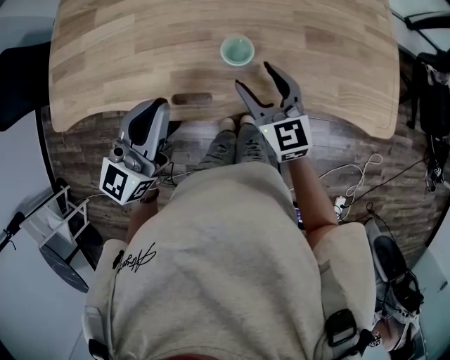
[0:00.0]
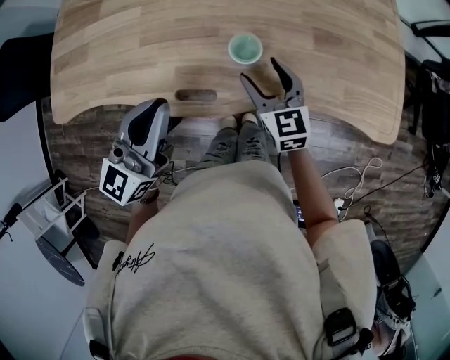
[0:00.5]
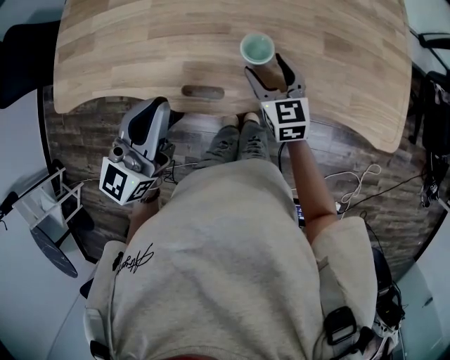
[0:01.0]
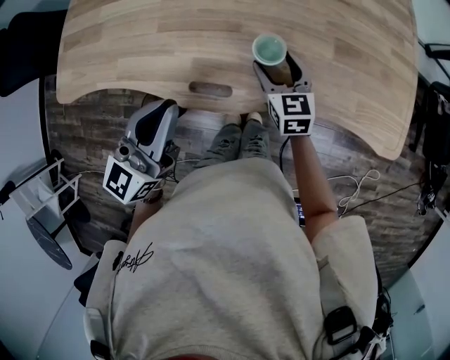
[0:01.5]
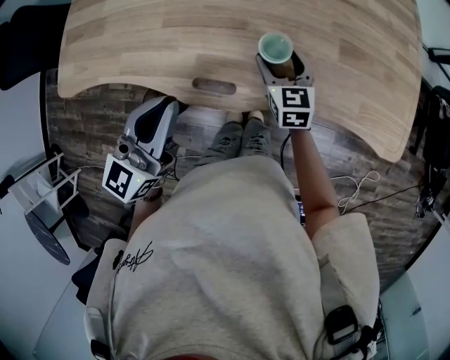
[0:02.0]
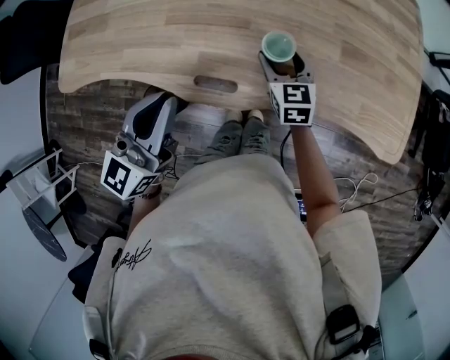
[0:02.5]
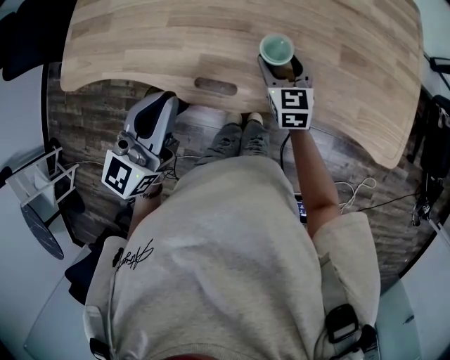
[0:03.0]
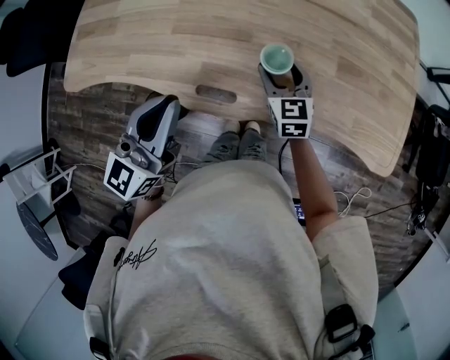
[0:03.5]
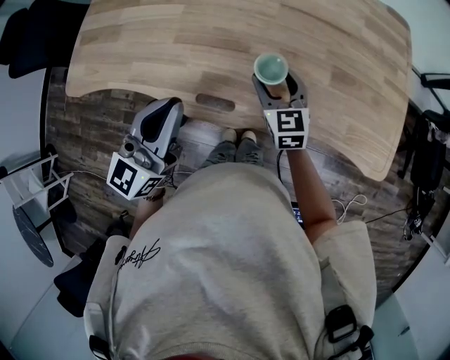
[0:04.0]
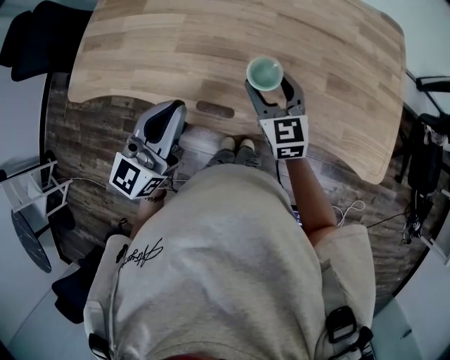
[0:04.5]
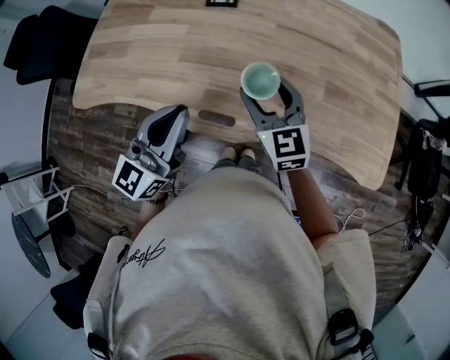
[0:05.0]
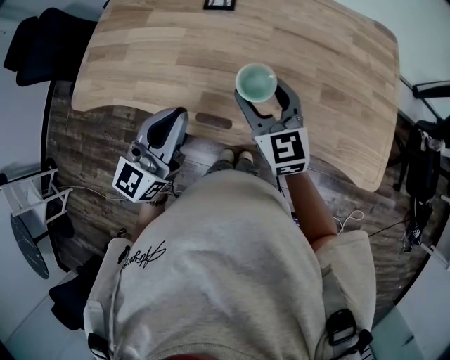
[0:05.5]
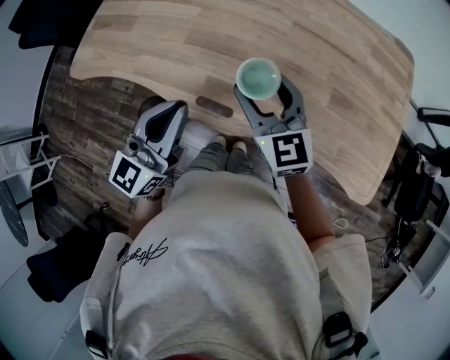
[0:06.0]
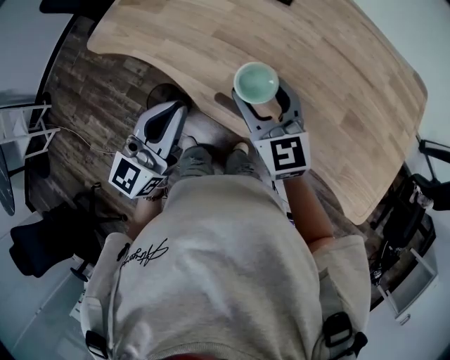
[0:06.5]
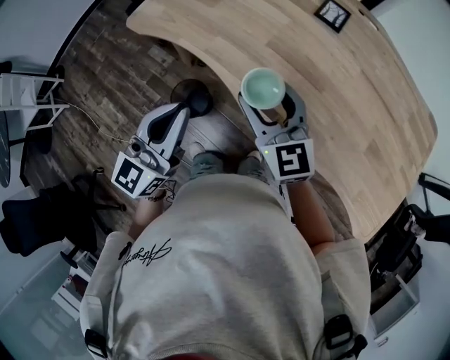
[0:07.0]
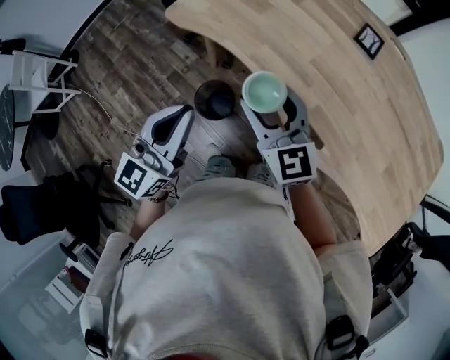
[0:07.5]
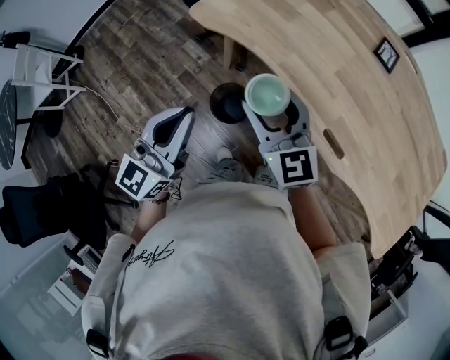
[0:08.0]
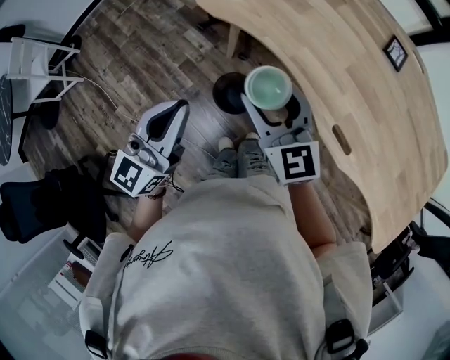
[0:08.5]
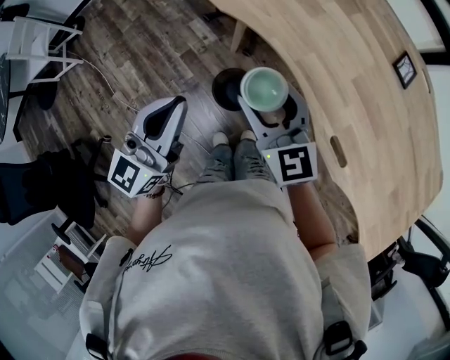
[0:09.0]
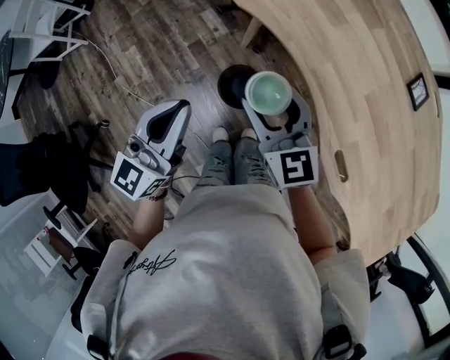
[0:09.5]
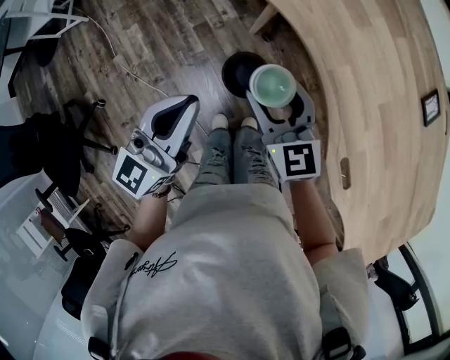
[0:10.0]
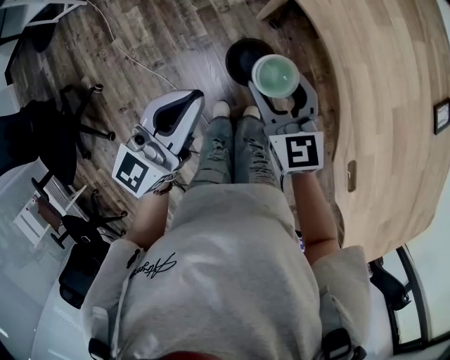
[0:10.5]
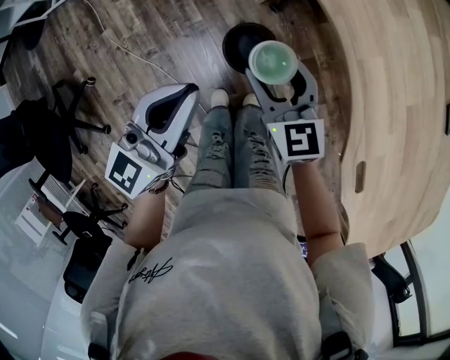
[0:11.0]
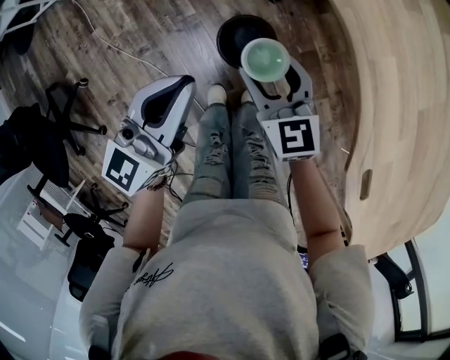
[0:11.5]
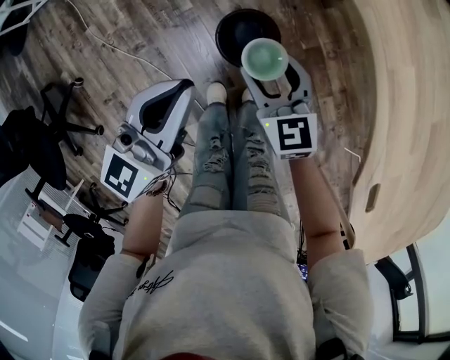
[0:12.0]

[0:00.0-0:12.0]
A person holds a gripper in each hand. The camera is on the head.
0:00.0 to 0:02.0: The right gripper goes approximately 10 cm downward and forward, while the left gripper moves about 5 cm.
0:02.0 to 0:04.0: The right gripper shifts about 5 cm upward.
0:04.0 to 0:06.0: The right gripper shifts approximately 15 cm upward and to the left, and swivels roughly 20 degrees.
0:06.0 to 0:08.0: The grippers both shift to the left by about 40 cm. The right gripper swivels about 20 degrees; the left gripper rotates some 20 degrees.
0:08.0 to 0:10.0: The left gripper shifts approximately 10 cm downward; the right gripper is displaced downward and to the left by some 15 cm.
0:10.0 to 0:12.0: The grippers both shift downward by some 20 cm.

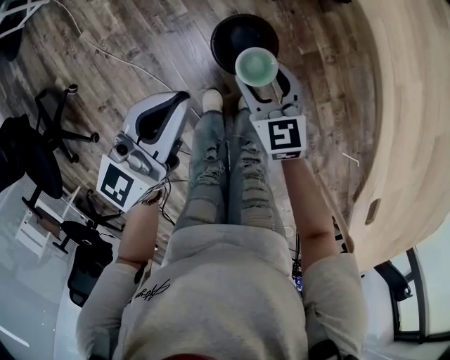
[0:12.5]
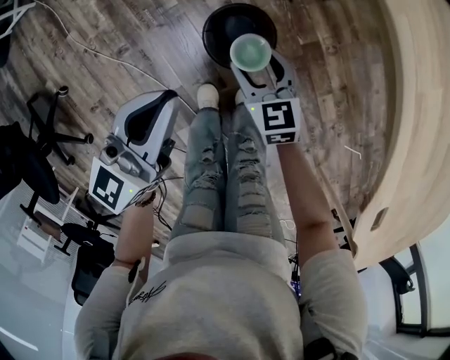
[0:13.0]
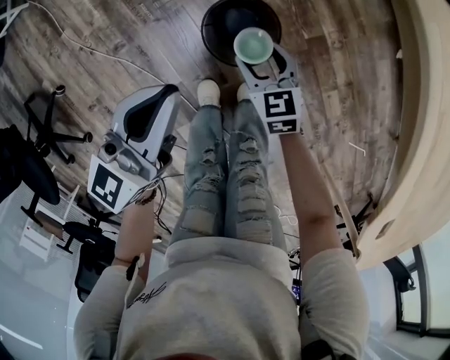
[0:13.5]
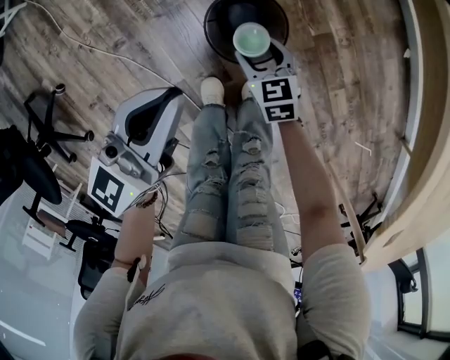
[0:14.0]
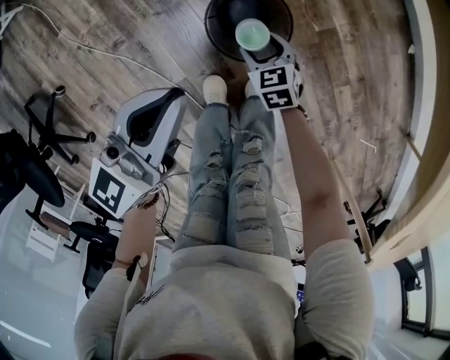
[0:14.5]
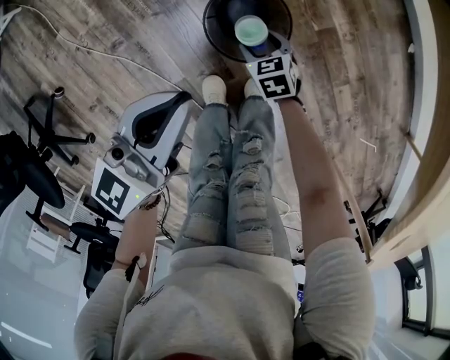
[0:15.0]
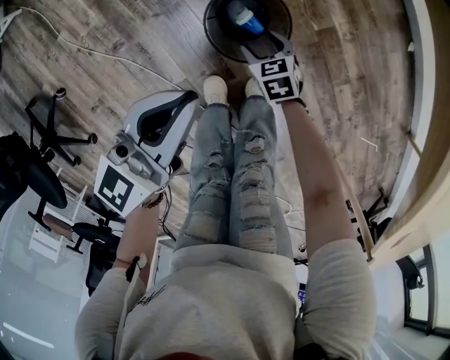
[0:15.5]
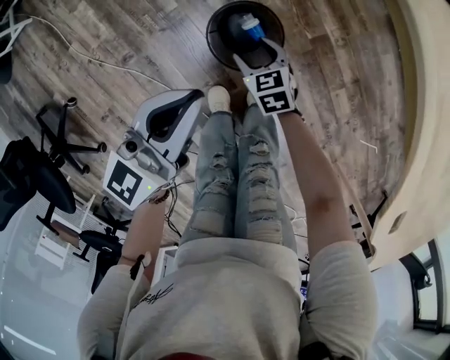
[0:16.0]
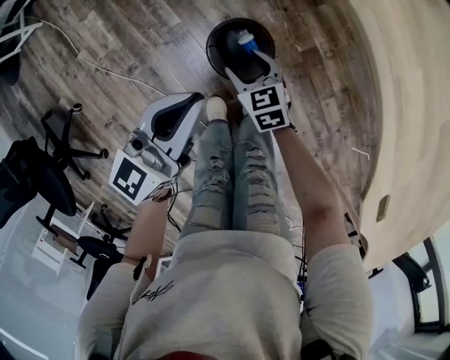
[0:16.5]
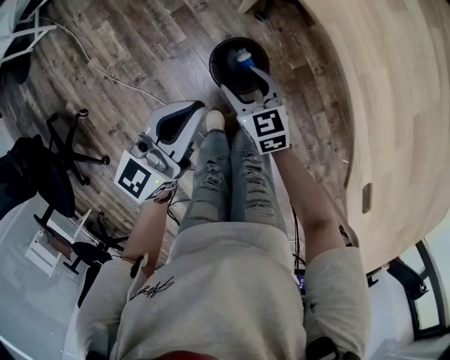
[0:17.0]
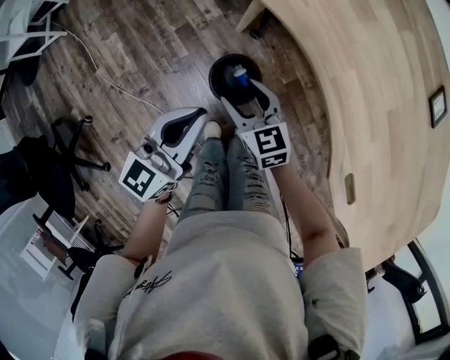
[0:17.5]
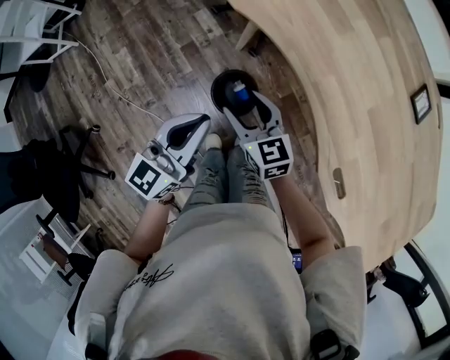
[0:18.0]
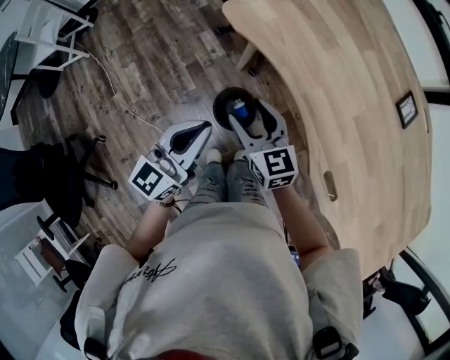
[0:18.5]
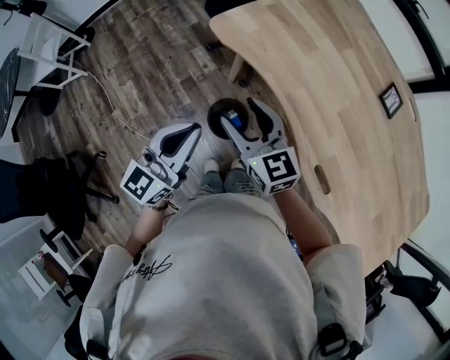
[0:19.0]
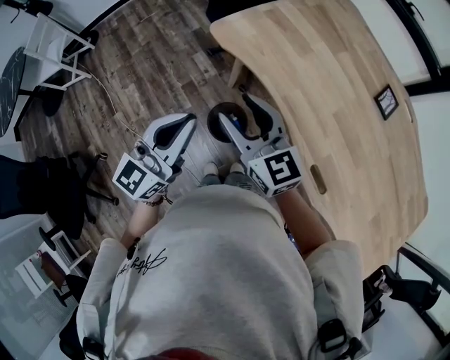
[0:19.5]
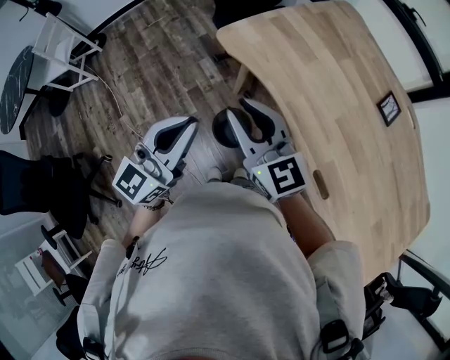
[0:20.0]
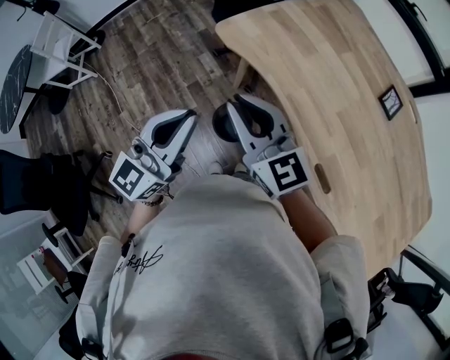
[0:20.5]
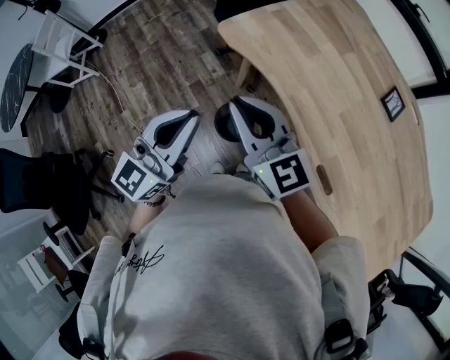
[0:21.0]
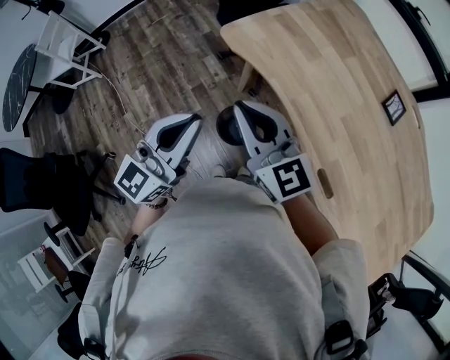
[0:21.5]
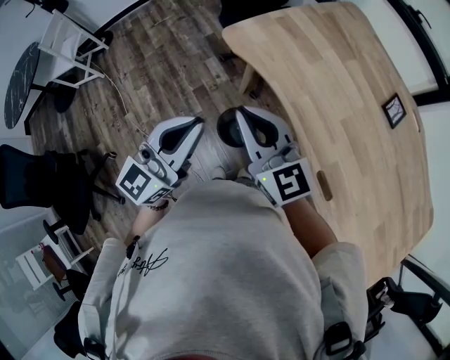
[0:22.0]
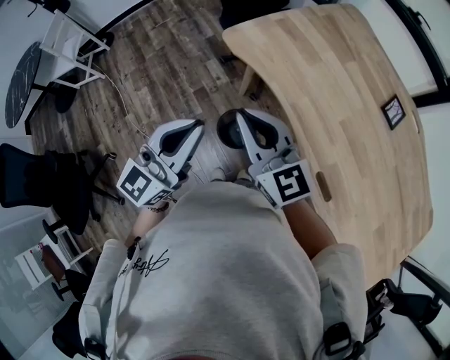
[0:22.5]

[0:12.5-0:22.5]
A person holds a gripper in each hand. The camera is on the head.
0:12.5 to 0:14.5: The right gripper shifts some 25 cm downward, and turns by about 20 degrees; the left gripper moves downward, roughly 10 cm.
0:14.5 to 0:16.5: The left gripper goes approximately 5 cm upward. Meanwhile the right gripper heads upward, covering about 15 cm.
0:16.5 to 0:18.5: The left gripper travels upward by about 20 cm. Meanwhile the right gripper travels upward by some 40 cm, and rotates approximately 30 degrees.
0:18.5 to 0:20.5: Both grippers travel together upward, approximately 15 cm. The right gripper closes its fingers.
0:20.5 to 0:22.5: There are only small adjustments of the grippers.

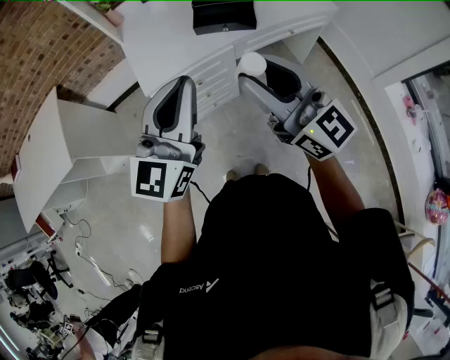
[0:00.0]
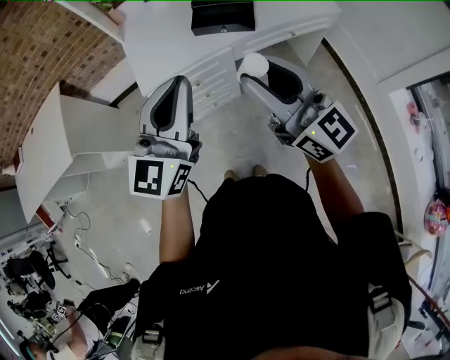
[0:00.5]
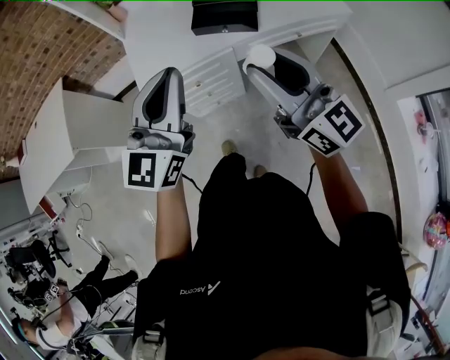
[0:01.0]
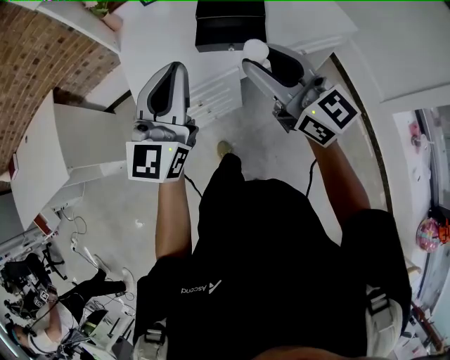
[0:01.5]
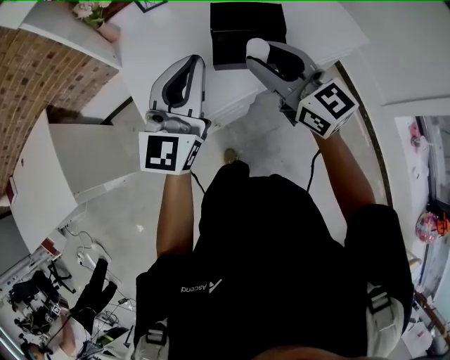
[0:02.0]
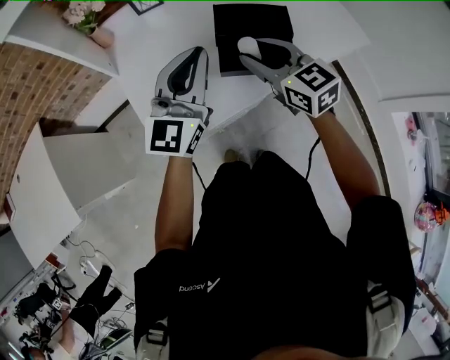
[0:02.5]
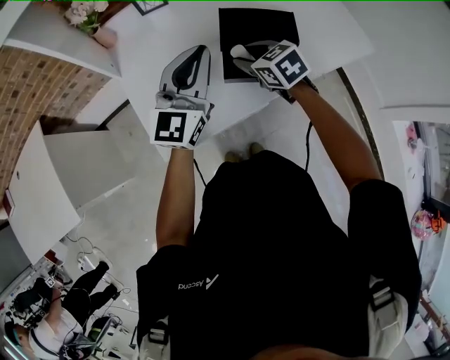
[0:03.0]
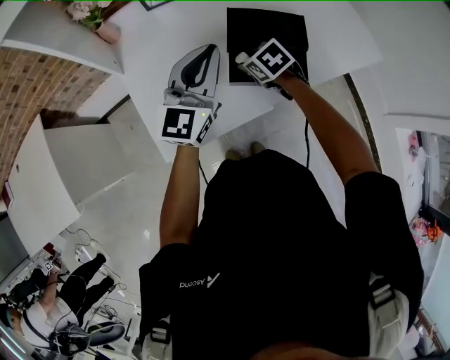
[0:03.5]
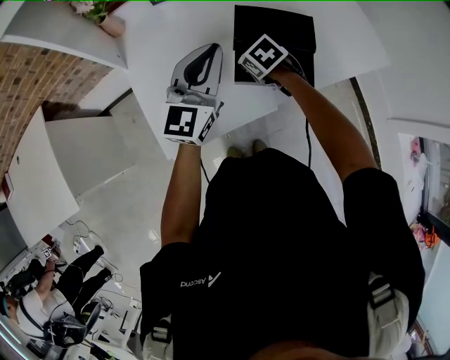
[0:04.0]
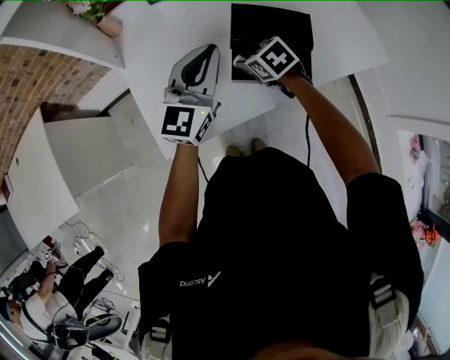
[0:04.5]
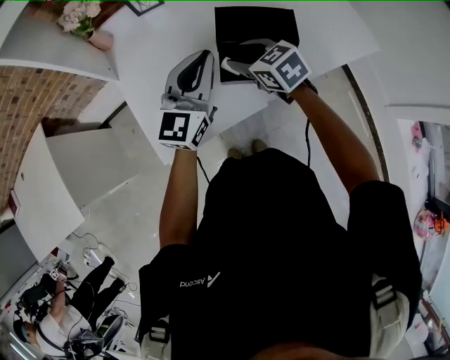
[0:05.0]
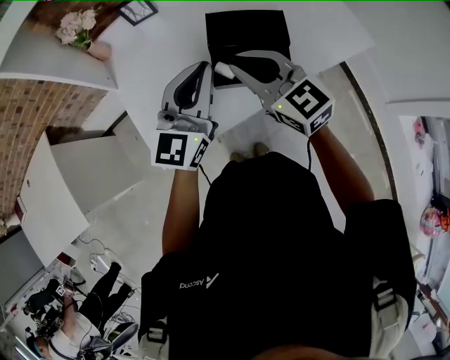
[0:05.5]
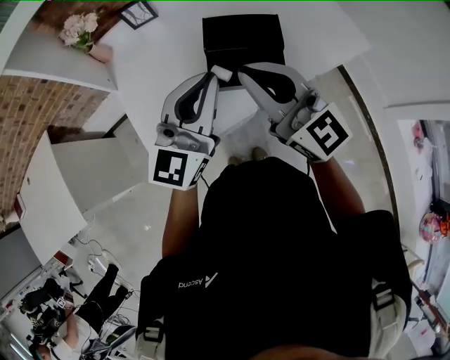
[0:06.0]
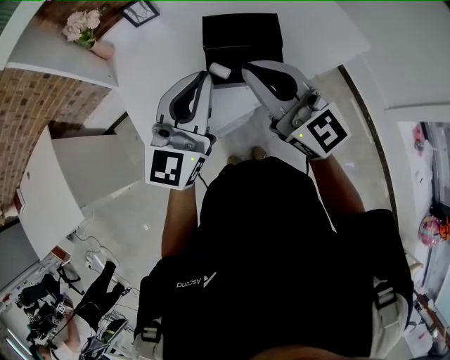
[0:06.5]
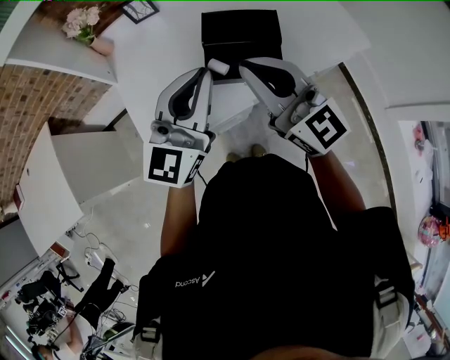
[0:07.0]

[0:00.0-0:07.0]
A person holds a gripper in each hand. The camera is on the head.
0:00.0 to 0:02.0: The two grippers go approximately 30 cm forward.
0:02.0 to 0:03.5: The right gripper moves downward and forward, some 30 cm, and angles its fingers downward, by roughly 60 degrees, while the left gripper moves forward and downward, some 15 cm.
0:03.5 to 0:05.0: The right gripper heads upward, covering about 10 cm, and rotates about 20 degrees.
0:05.0 to 0:07.0: The right gripper is displaced upward and backward by some 25 cm, tips its fingers upward by about 50 degrees, and closes; the left gripper goes about 15 cm backward and upward.
